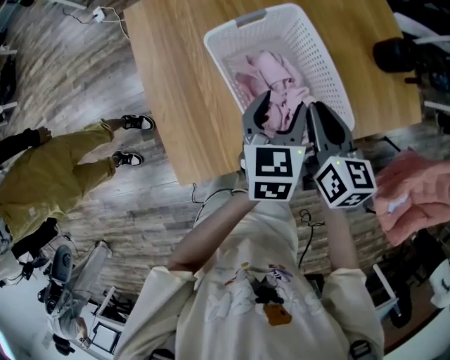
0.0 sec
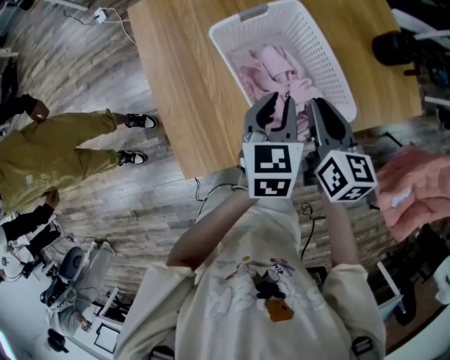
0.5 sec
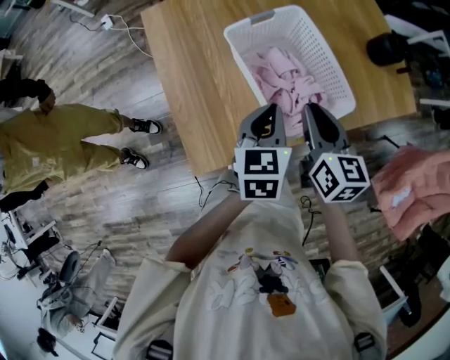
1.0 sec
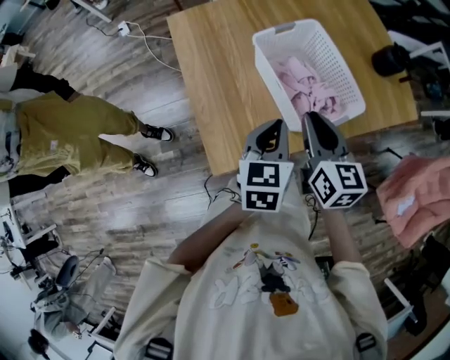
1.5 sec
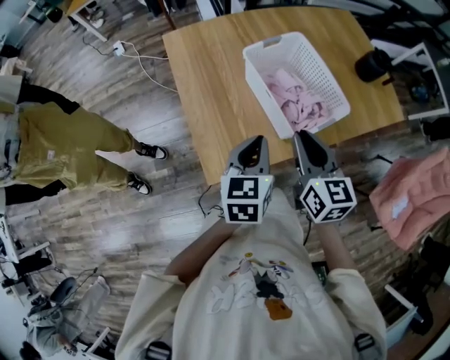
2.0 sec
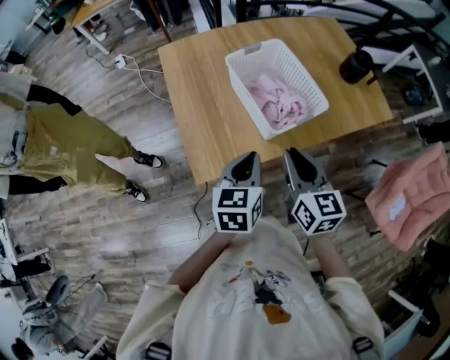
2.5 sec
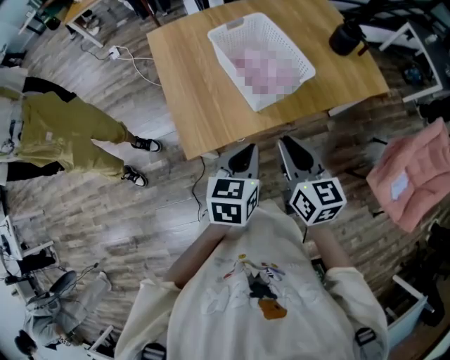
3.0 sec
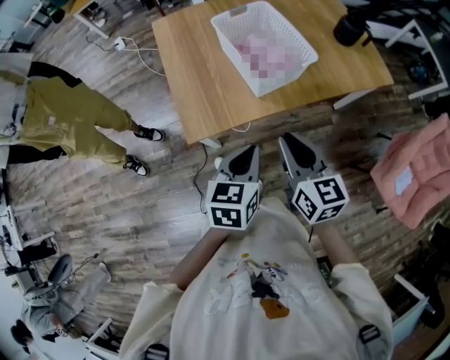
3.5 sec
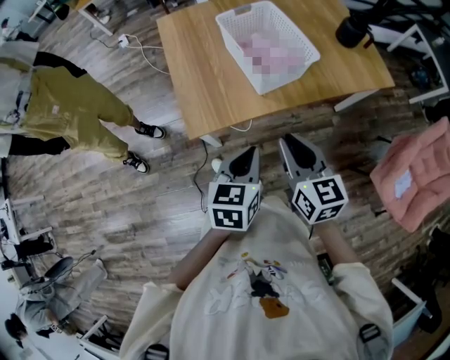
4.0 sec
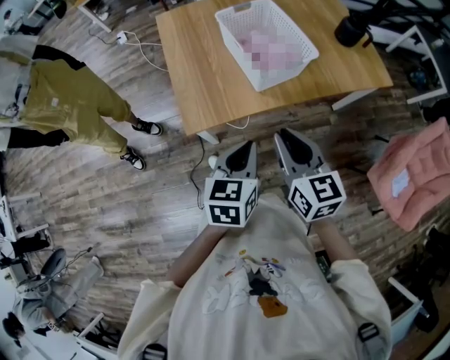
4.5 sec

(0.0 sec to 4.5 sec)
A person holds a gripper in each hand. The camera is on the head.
0.0 sec - 2.0 sec: The right gripper moves backward, to the left and upward, approximately 20 cm, while the left gripper goes some 20 cm backward and to the left, and closes up.
2.0 sec - 4.5 sec: The right gripper travels backward by about 20 cm. Meanwhile the left gripper is displaced backward and to the right by some 20 cm.

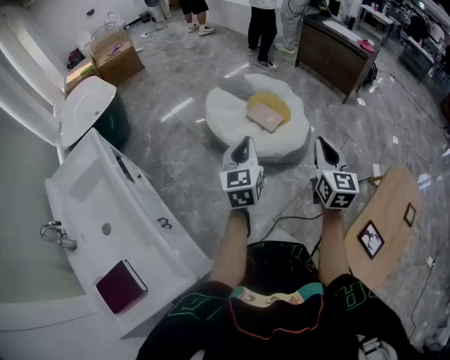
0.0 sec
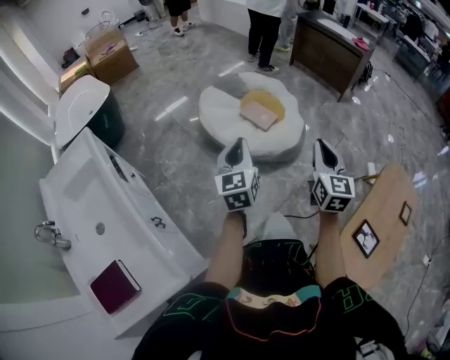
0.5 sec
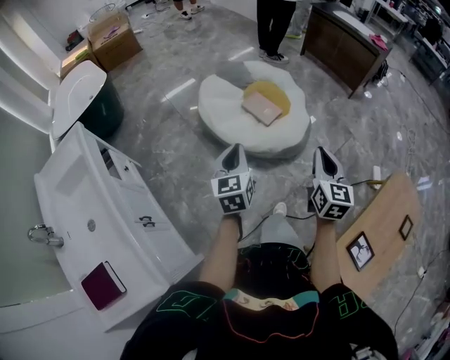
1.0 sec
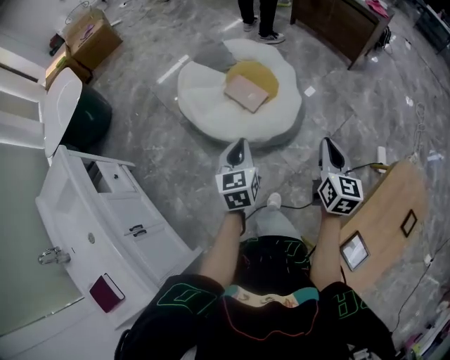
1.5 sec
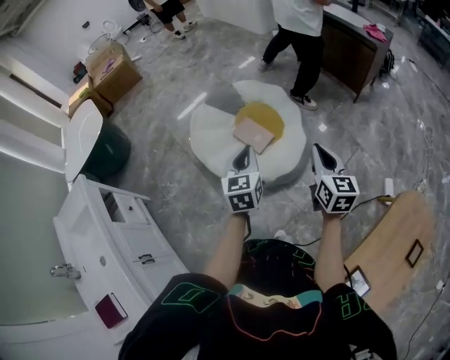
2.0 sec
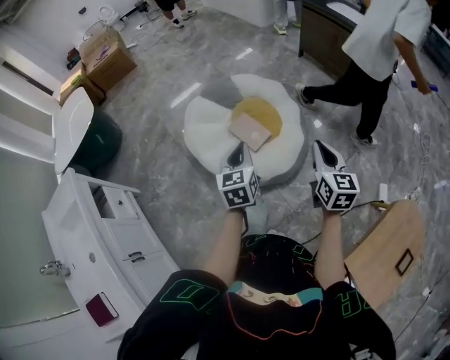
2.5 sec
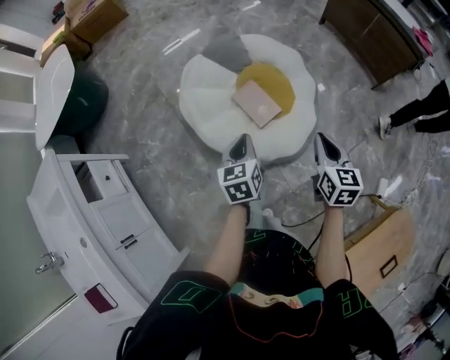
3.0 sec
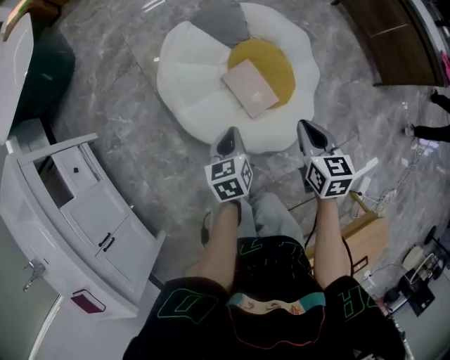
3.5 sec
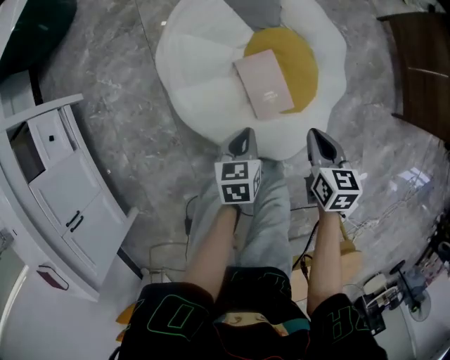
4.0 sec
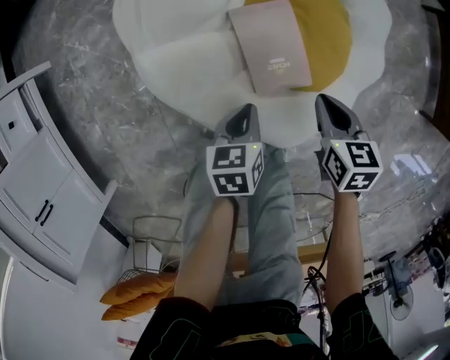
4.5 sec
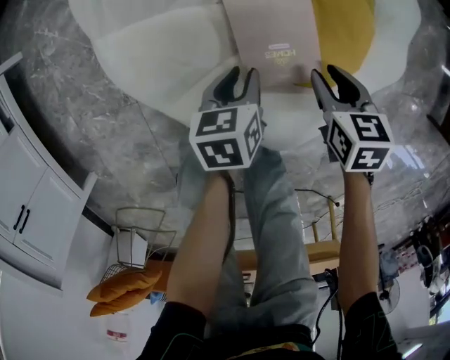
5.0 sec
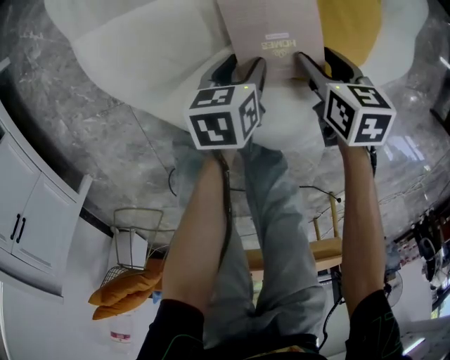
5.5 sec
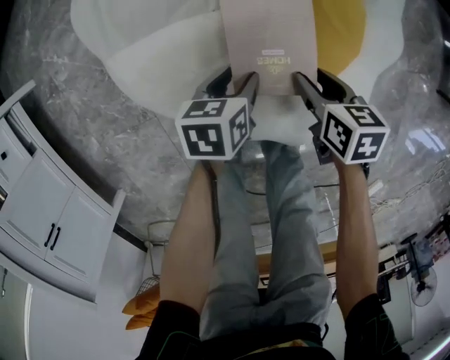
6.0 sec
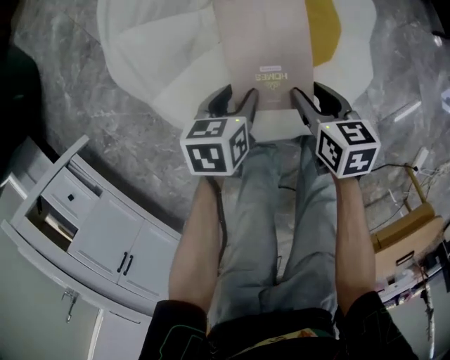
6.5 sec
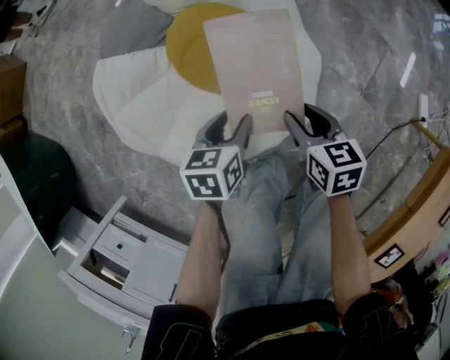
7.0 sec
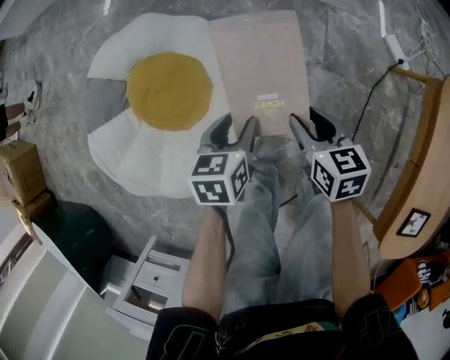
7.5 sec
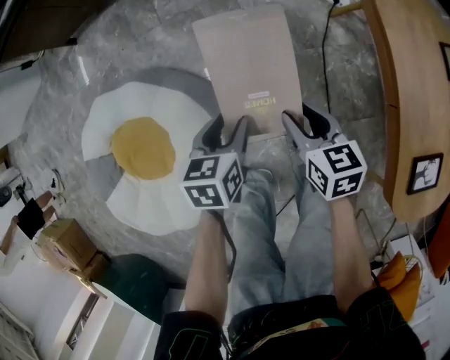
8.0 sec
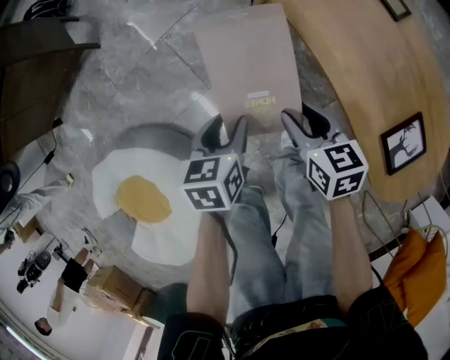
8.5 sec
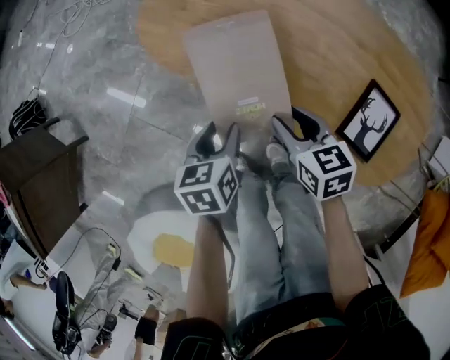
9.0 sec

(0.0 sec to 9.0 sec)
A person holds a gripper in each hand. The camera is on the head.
0.0 sec - 2.0 sec: Both grippers travel together forward and to the right, some 35 cm.
2.0 sec - 4.5 sec: Both grippers move downward, roughly 50 cm. The left gripper points its fingers some 30 degrees further downward, while the right gripper tilts its fingers roughly 40 degrees downward.
4.5 sec - 7.0 sec: The right gripper reaches about 15 cm downward, then returns, rotates approximately 40 degrees, and opens its fingers, while the left gripper is displaced upward by about 10 cm, twists about 40 degrees clockwise, seen from behind, and opens its fingers.
7.0 sec - 9.0 sec: The two grippers travel together, some 80 cm. The right gripper rotates some 90 degrees, while the left gripper turns by approximately 90 degrees.

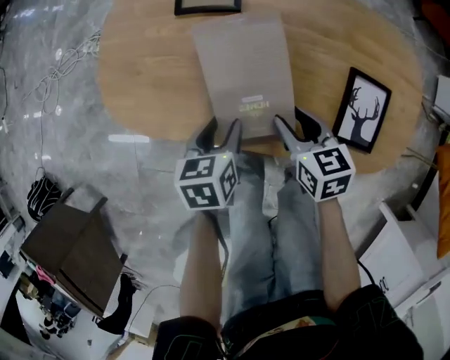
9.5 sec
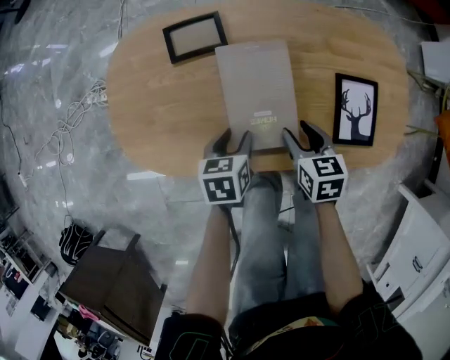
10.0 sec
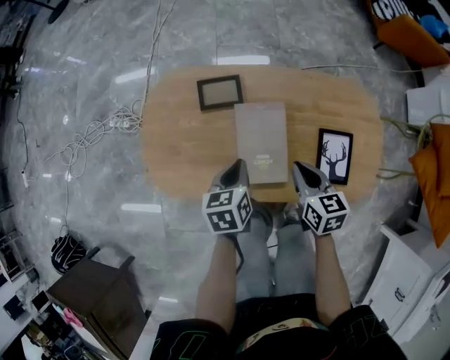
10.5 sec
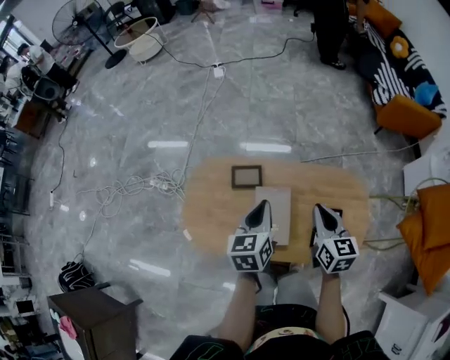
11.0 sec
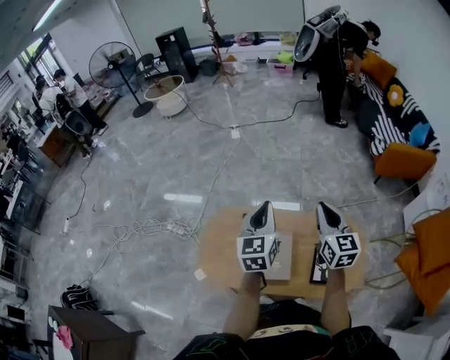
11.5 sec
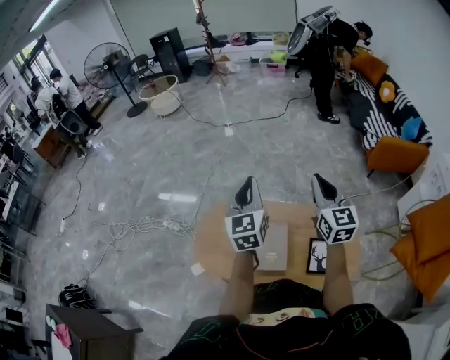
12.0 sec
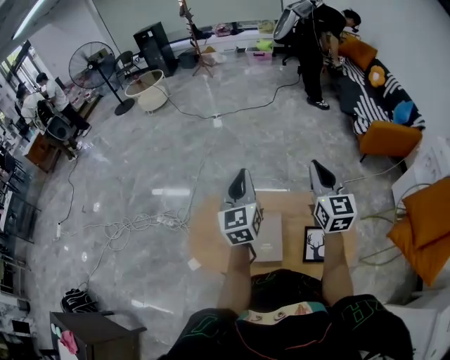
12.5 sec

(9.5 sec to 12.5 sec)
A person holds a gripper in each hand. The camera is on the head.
9.5 sec - 11.0 sec: The right gripper goes roughly 30 cm upward, turns by approximately 30 degrees, and closes up, while the left gripper heads upward and forward, covering some 35 cm, turns by about 30 degrees, and closes its fingers.
11.0 sec - 12.5 sec: Both grippers travel together upward, some 20 cm. The left gripper rotates roughly 30 degrees. The right gripper changes its angle by some 30 degrees.

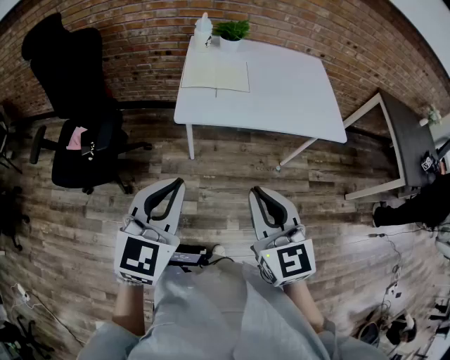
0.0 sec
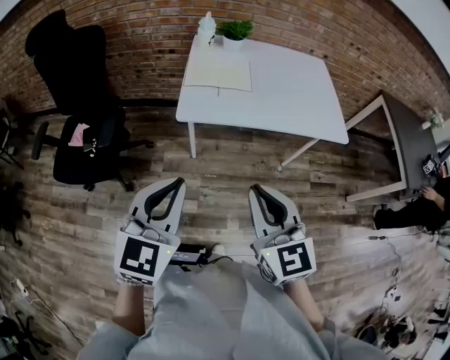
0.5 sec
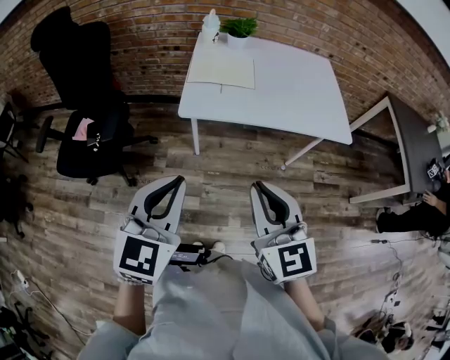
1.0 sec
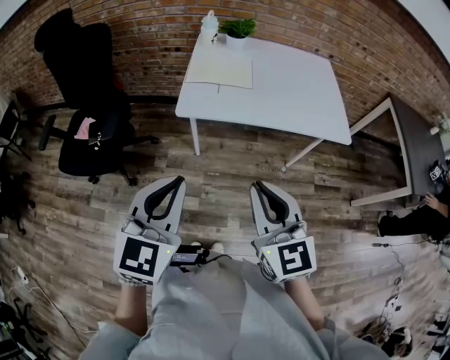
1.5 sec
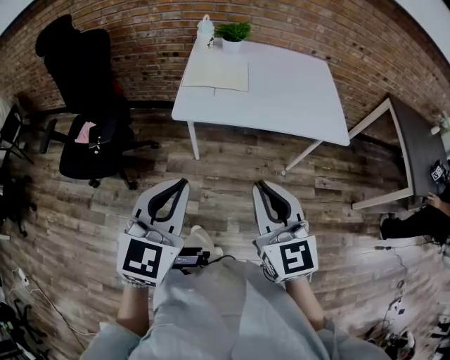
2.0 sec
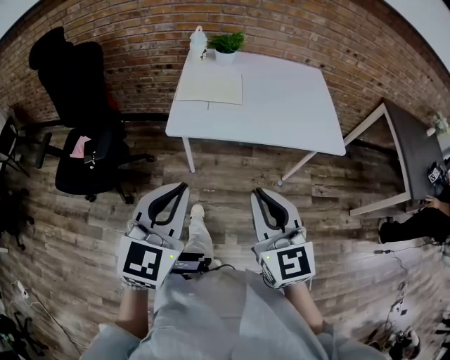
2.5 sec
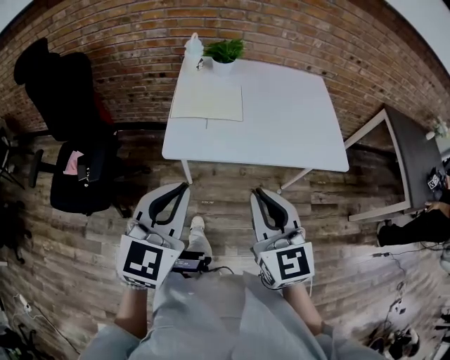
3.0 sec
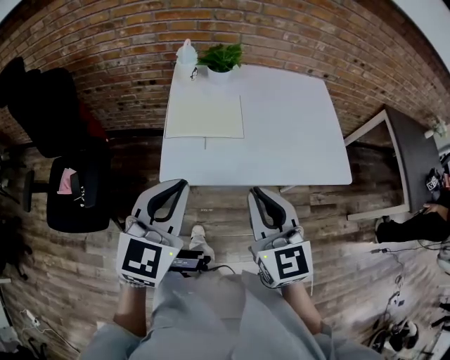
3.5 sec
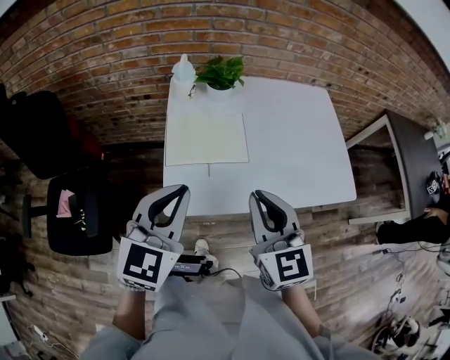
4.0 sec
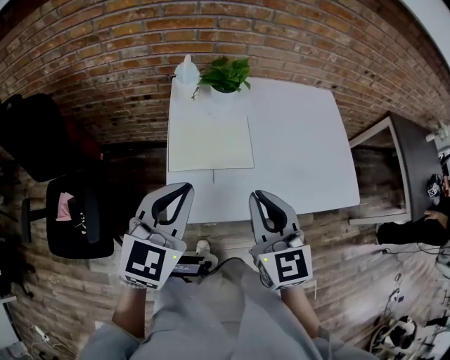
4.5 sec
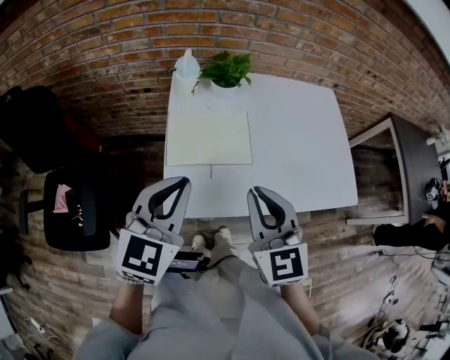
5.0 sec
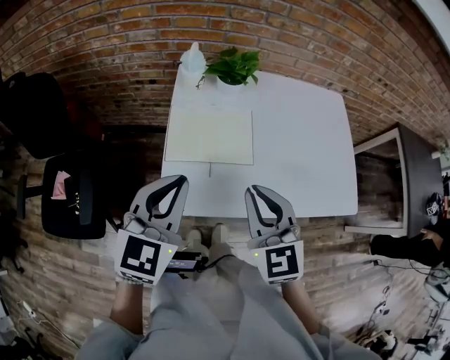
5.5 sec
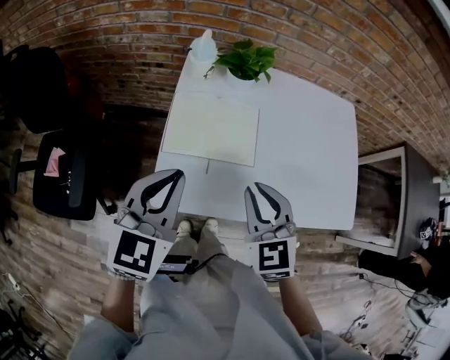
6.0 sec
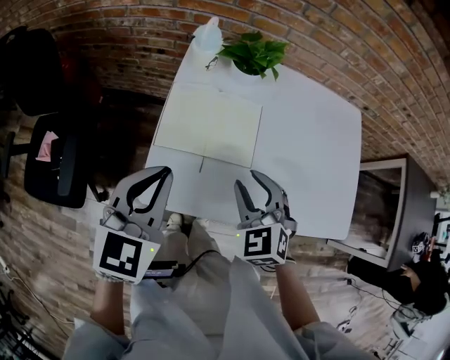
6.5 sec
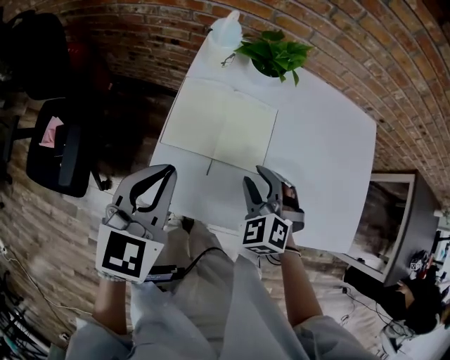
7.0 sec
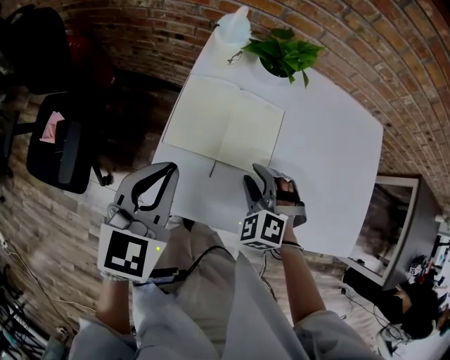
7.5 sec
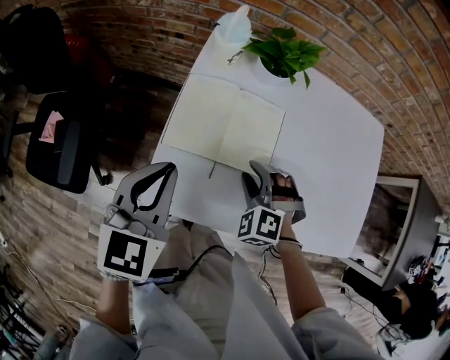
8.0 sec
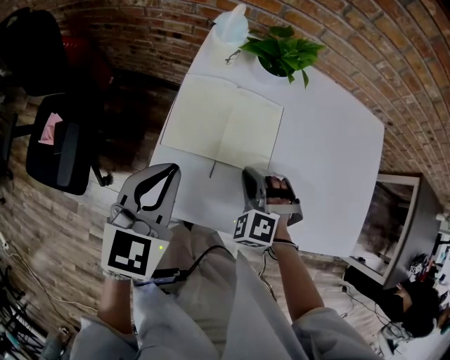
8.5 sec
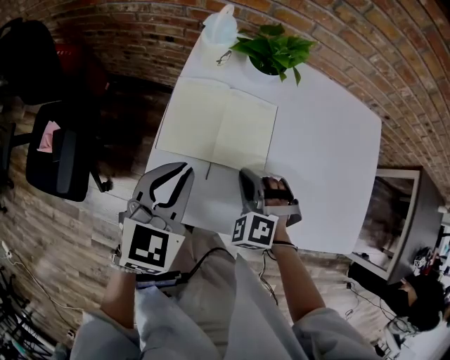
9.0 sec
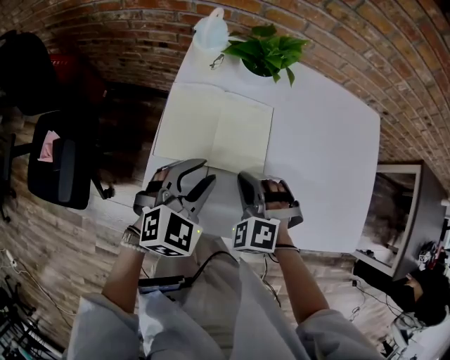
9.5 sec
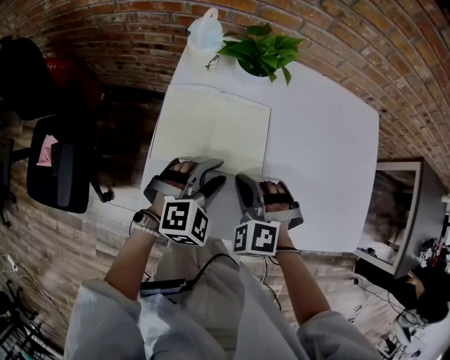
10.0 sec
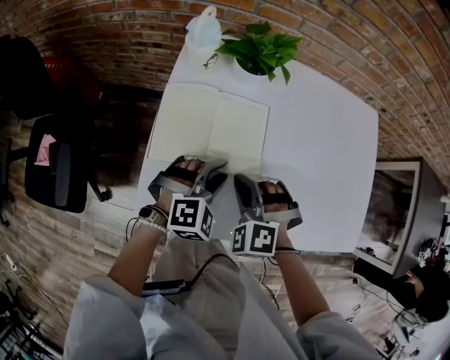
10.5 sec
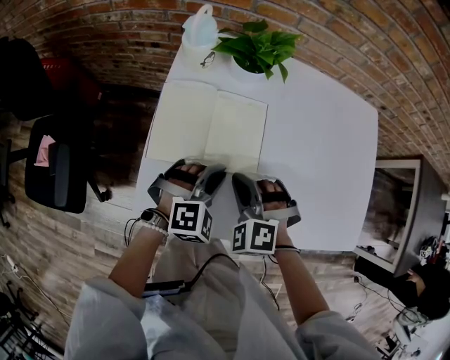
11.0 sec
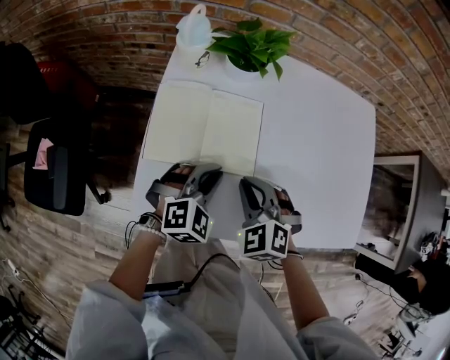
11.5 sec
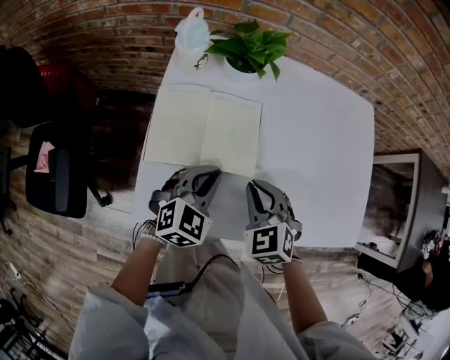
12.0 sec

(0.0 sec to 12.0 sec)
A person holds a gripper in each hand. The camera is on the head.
0.0 sec - 2.0 sec: Both grippers travel together to the right, about 10 cm.
2.0 sec - 4.0 sec: Both grippers move forward, about 40 cm.
4.0 sec - 6.0 sec: The right gripper is displaced forward and downward by about 10 cm, and swivels approximately 30 degrees. The left gripper travels forward by about 5 cm.
6.0 sec - 8.0 sec: The left gripper shifts about 10 cm downward and forward. Meanwhile the right gripper goes roughly 20 cm downward and forward, rolls counterclockwise, seen from behind, by about 40 degrees, and opens up.
8.0 sec - 10.0 sec: The left gripper moves downward and to the right, about 20 cm, rotates around the line of its fingers by approximately 50 degrees, clockwise from behind, and opens. Meanwhile the right gripper closes up.
10.0 sec - 12.0 sec: The left gripper changes its angle by roughly 20 degrees, and closes its fingers, while the right gripper travels to the right by some 5 cm, and swivels roughly 40 degrees.
